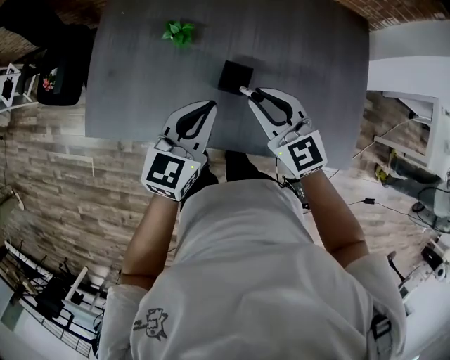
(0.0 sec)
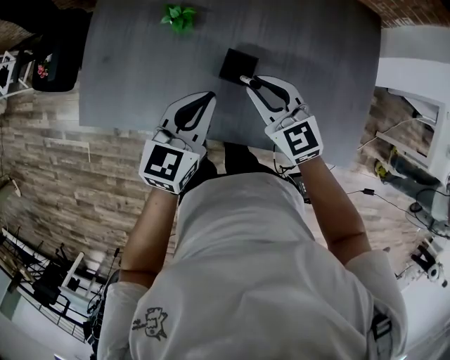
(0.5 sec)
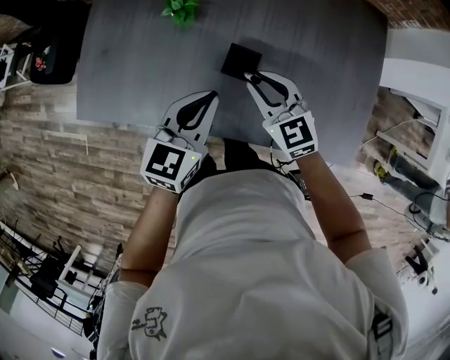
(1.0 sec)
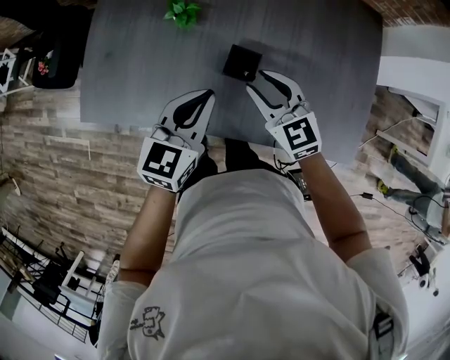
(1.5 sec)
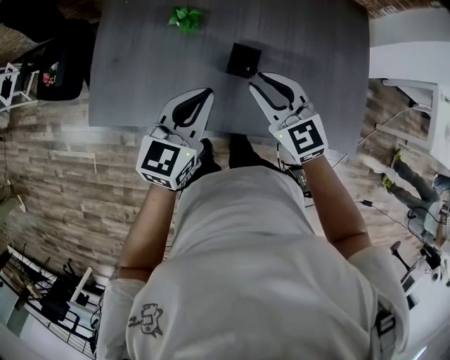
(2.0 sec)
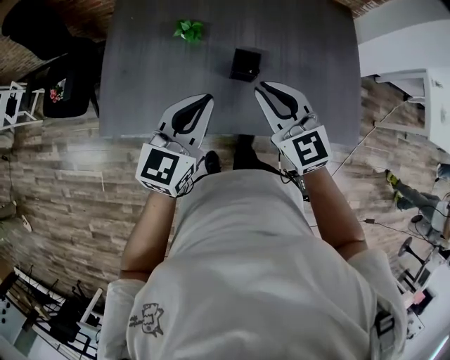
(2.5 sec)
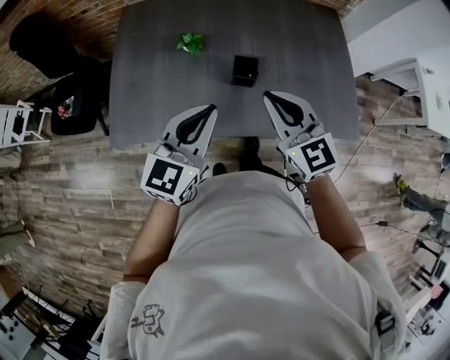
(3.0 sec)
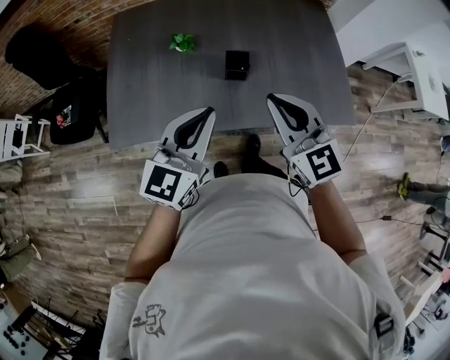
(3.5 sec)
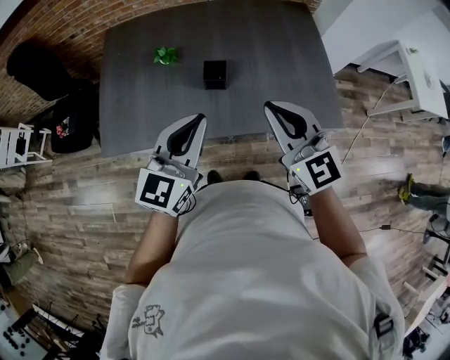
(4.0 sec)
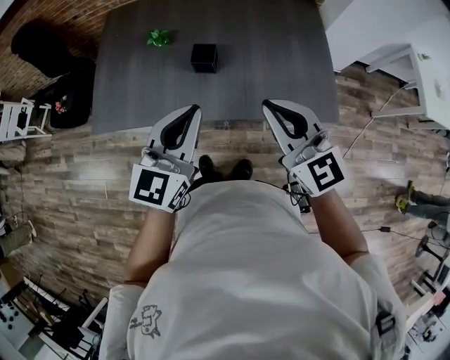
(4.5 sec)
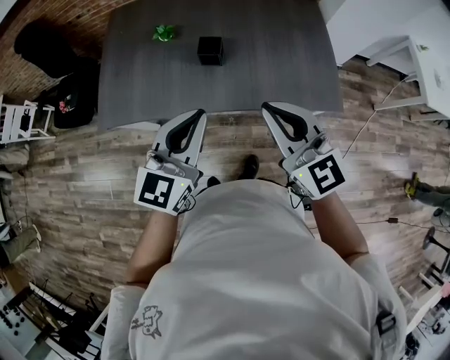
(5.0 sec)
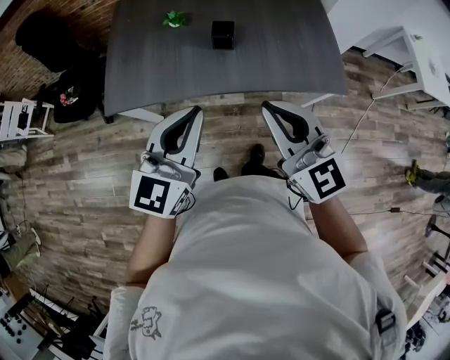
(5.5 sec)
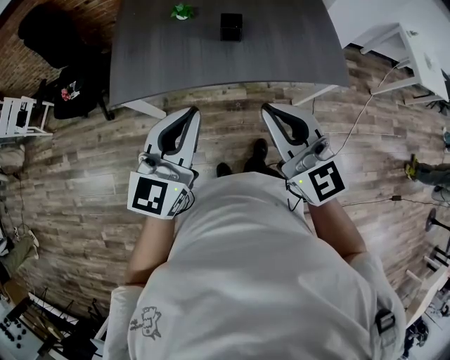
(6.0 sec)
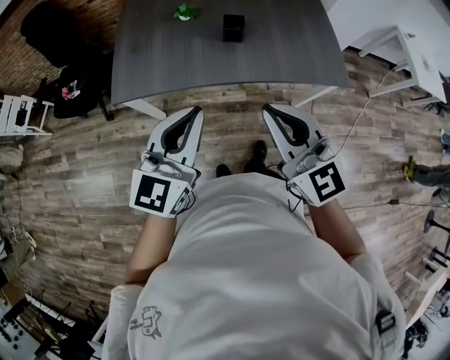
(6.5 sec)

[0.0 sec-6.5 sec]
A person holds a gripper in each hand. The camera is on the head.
0.0 sec to 2.0 sec: The right gripper moves roughly 10 cm downward and comes back.
2.0 sec to 4.5 sec: The grippers both shift backward, upward and to the right by approximately 25 cm. The right gripper closes up.
4.5 sec to 6.5 sec: The grippers both shift backward and to the left by roughly 25 cm.

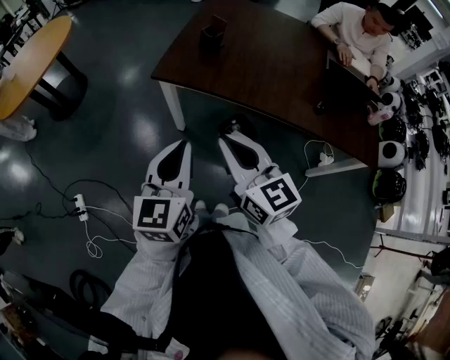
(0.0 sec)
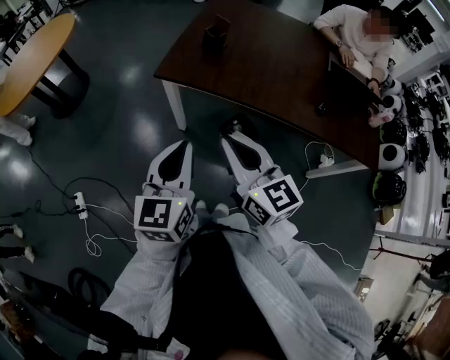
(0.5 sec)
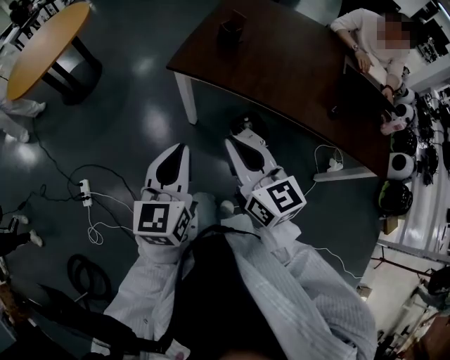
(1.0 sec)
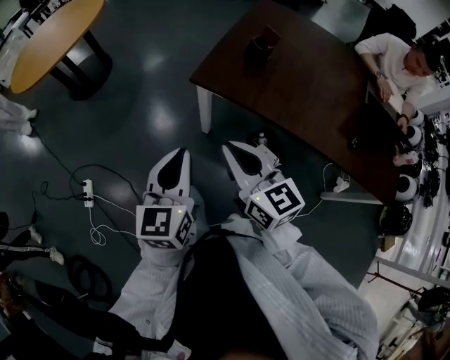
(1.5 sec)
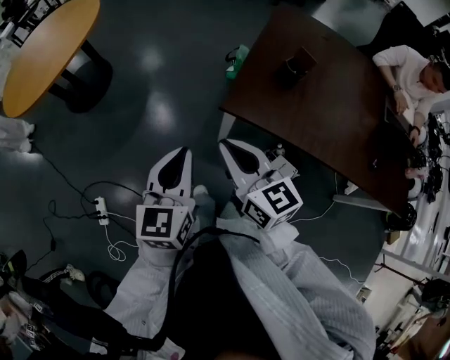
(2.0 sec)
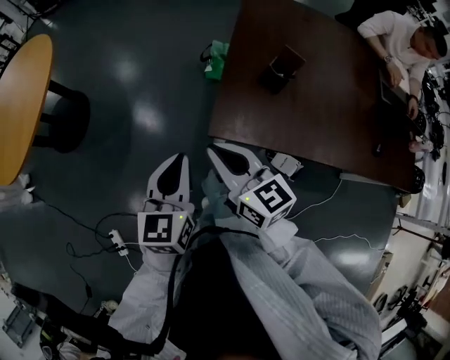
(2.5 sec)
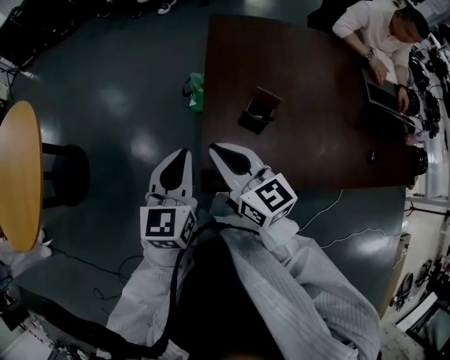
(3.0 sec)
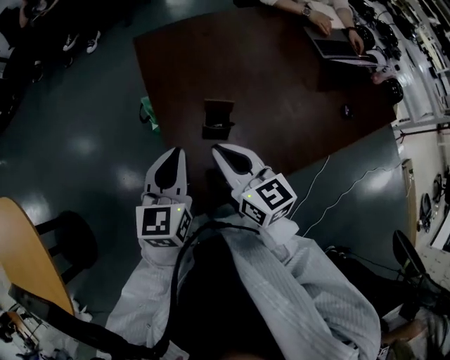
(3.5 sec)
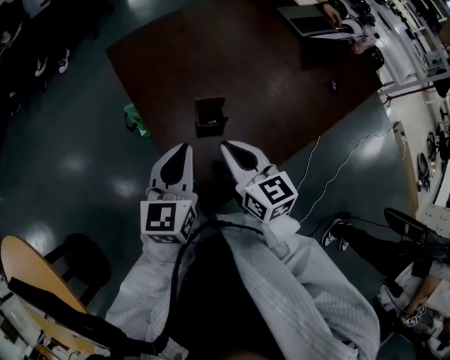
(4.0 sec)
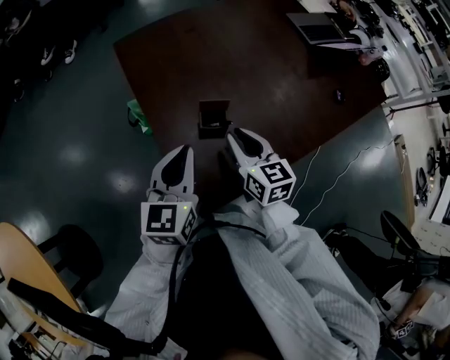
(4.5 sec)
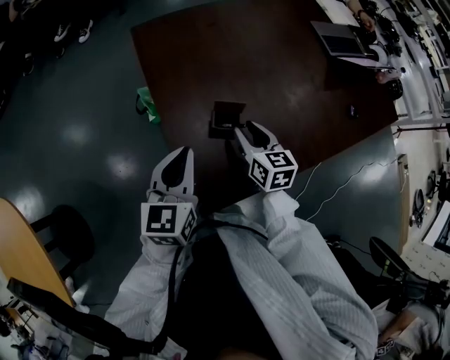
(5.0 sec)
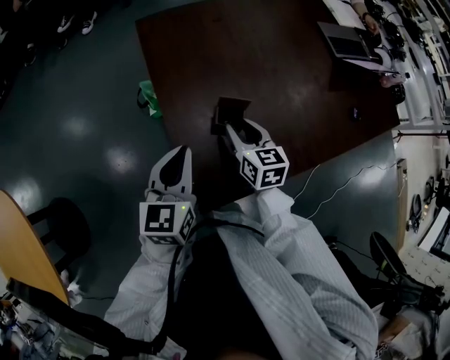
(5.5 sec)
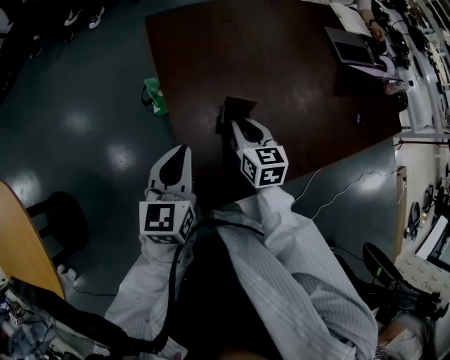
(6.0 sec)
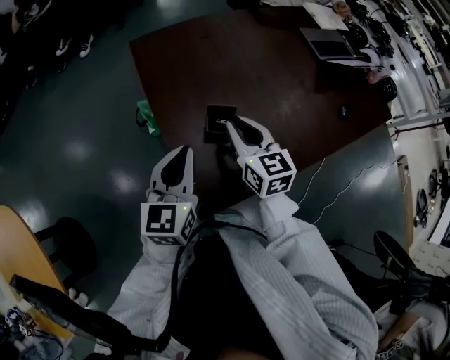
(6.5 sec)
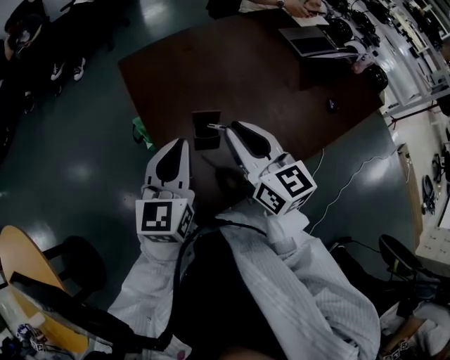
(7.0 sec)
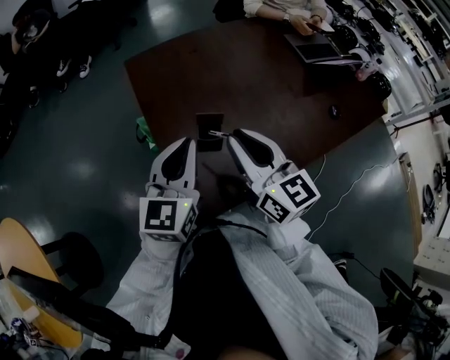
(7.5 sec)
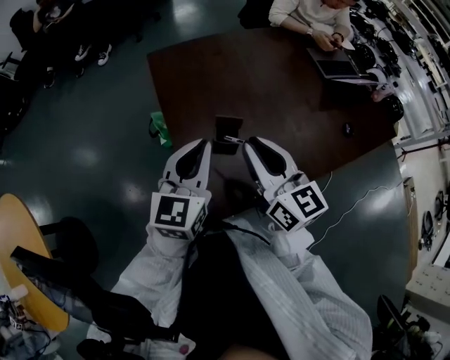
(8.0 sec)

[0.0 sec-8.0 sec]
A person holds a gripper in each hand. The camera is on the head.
0.0 sec to 2.0 sec: The two grippers go roughly 35 cm forward and to the left.
2.0 sec to 4.0 sec: The right gripper ends up approximately 40 cm from where it was, and changes its angle by approximately 60 degrees. Meanwhile the left gripper shifts by roughly 40 cm, and swivels roughly 50 degrees.
4.0 sec to 6.0 sec: The left gripper moves to the left, some 5 cm. Meanwhile the right gripper heads downward and forward, covering about 10 cm.
6.0 sec to 8.0 sec: The right gripper goes about 20 cm upward, and swivels roughly 30 degrees; the left gripper travels upward and to the right by approximately 10 cm.

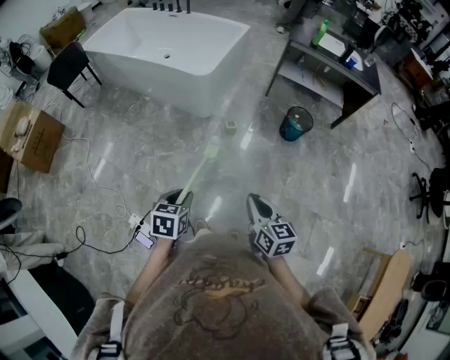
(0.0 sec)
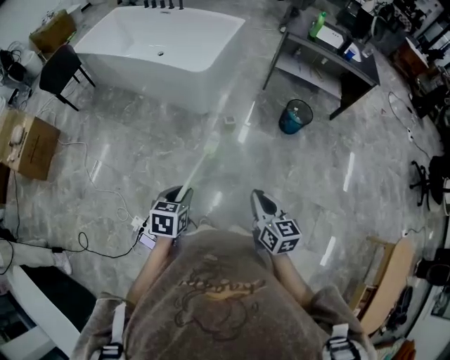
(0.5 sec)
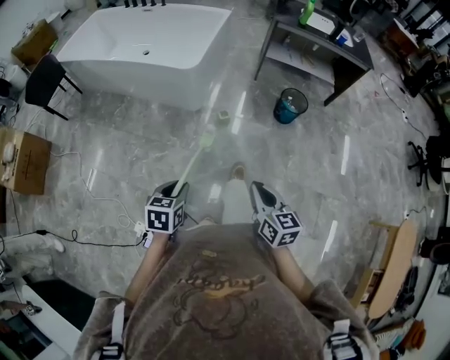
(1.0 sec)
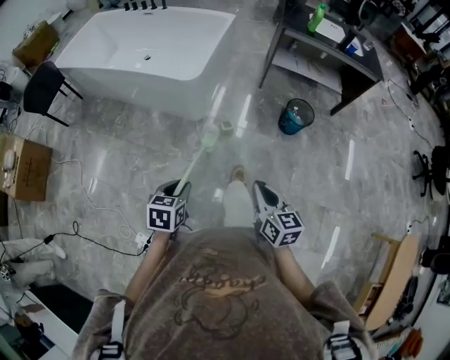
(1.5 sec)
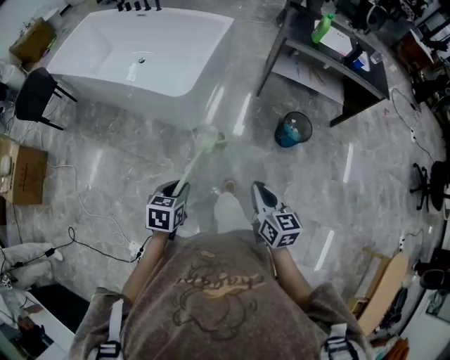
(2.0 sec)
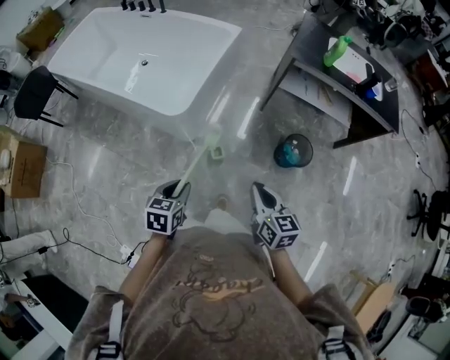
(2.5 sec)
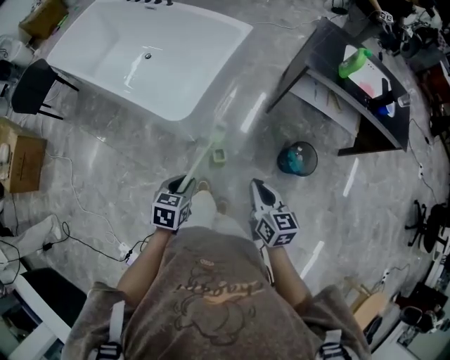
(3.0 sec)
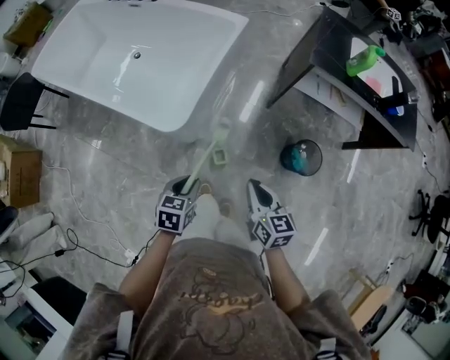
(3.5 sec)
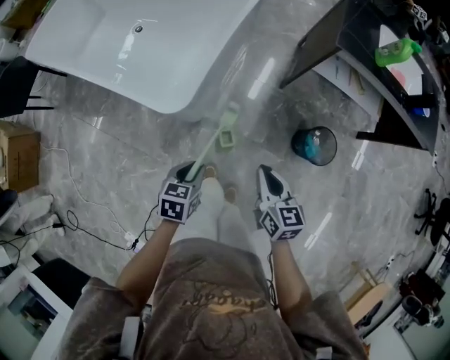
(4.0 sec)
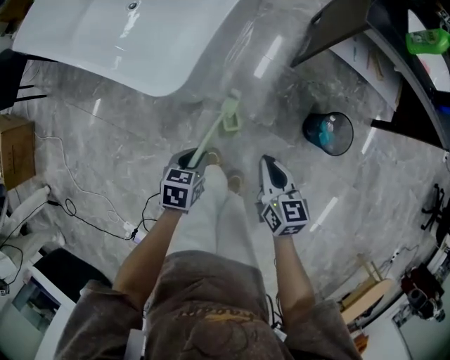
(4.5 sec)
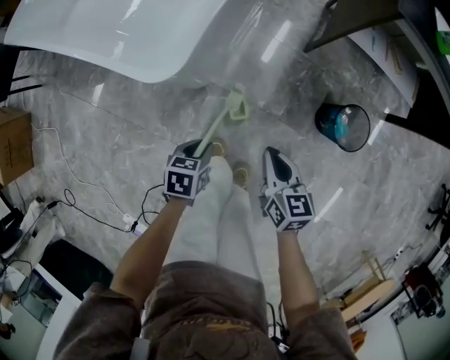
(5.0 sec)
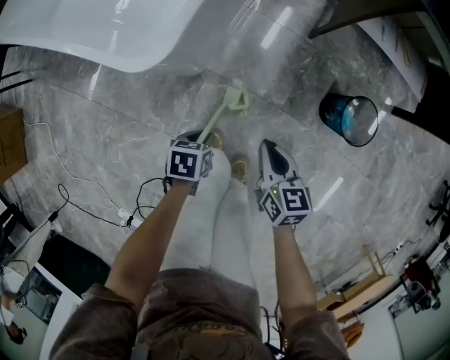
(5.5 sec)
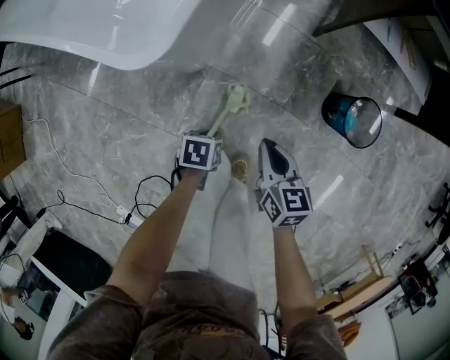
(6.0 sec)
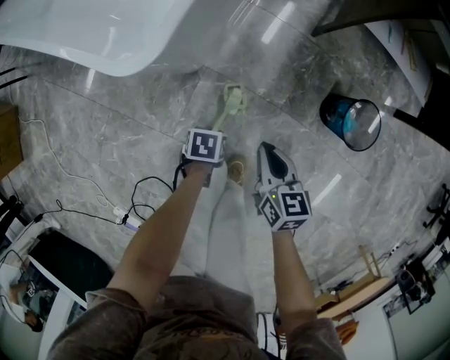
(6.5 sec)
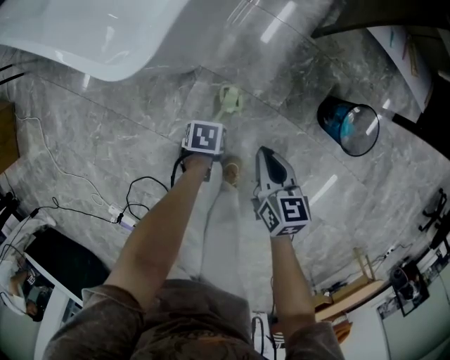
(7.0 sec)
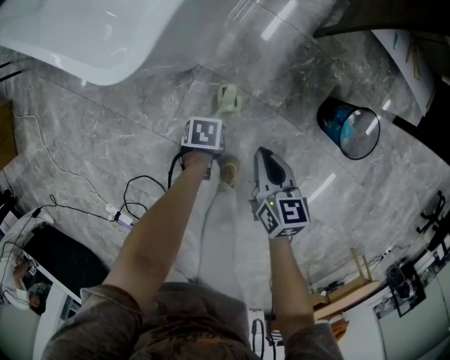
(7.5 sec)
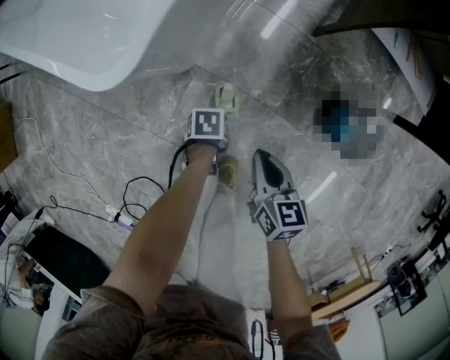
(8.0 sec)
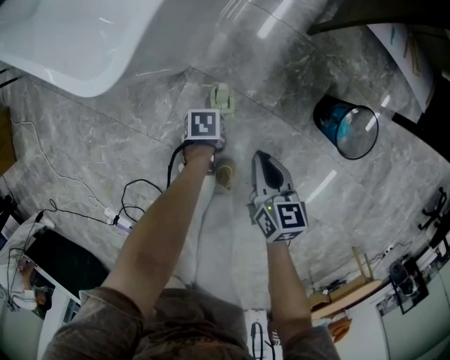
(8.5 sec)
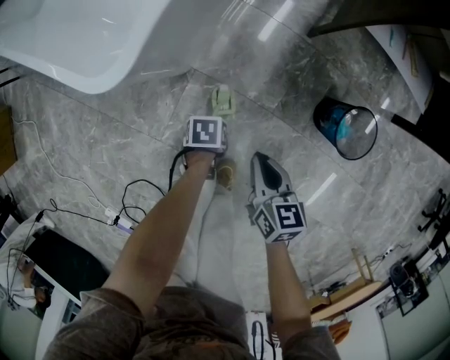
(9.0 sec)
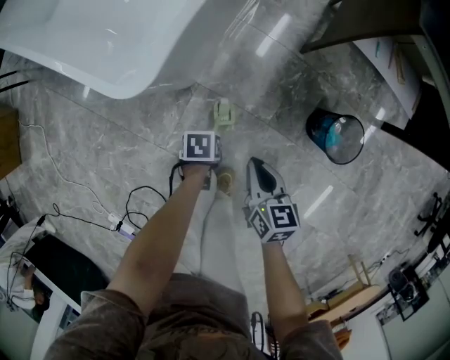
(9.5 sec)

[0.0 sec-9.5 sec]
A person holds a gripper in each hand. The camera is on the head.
0.0 sec to 2.0 sec: The grippers both shift forward by some 30 cm.
2.0 sec to 4.0 sec: Both grippers move forward and downward, some 35 cm.
4.0 sec to 5.5 sec: Both grippers move downward, some 25 cm.
5.5 sec to 7.5 sec: The left gripper heads downward, covering some 10 cm. Meanwhile the right gripper changes place by some 5 cm.
7.5 sec to 9.5 sec: Both grippers move upward, about 5 cm. The left gripper opens its fingers.

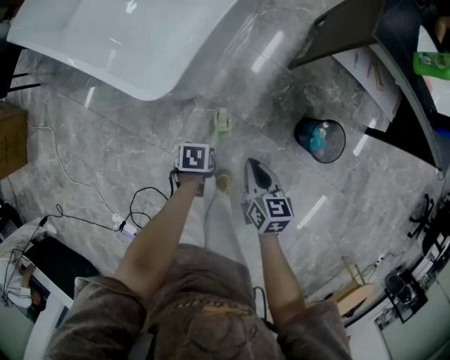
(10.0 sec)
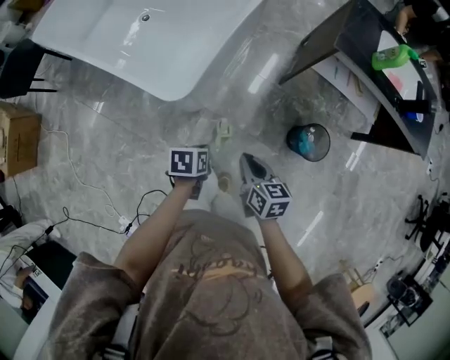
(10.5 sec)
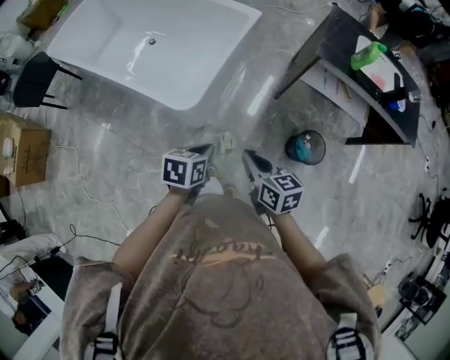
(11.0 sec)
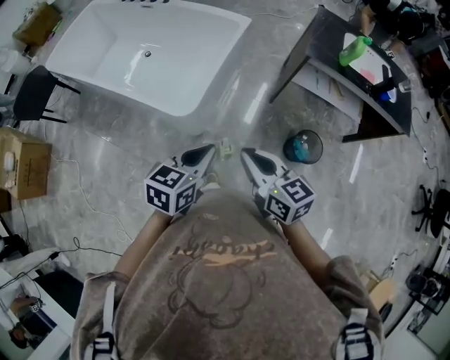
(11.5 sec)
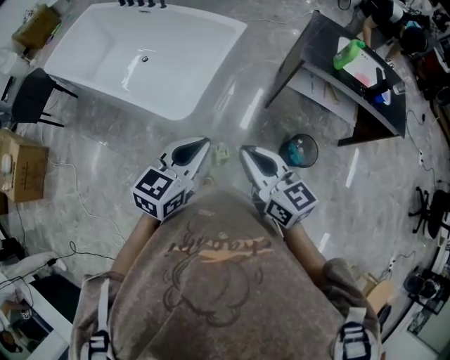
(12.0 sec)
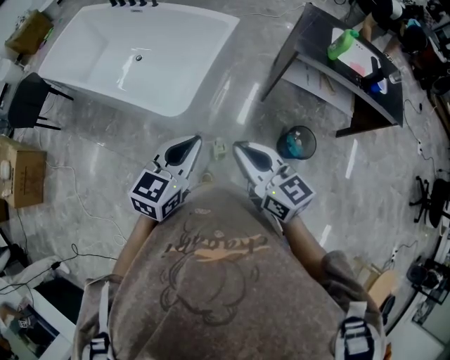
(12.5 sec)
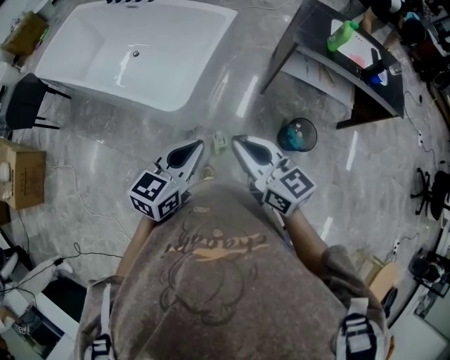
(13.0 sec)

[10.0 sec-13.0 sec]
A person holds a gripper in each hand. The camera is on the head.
10.0 sec to 11.5 sec: Both grippers travel together upward, roughly 40 cm. The right gripper rotates approximately 30 degrees. The left gripper tilts its fingers roughly 40 degrees upward.
11.5 sec to 13.0 sec: The grippers move only a little.
